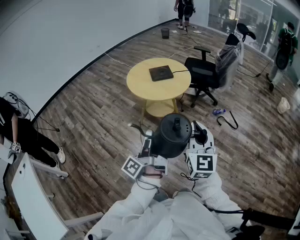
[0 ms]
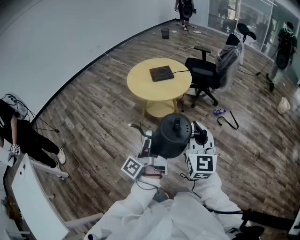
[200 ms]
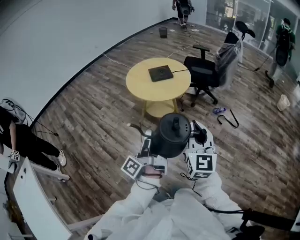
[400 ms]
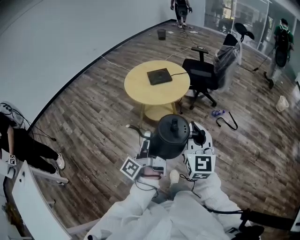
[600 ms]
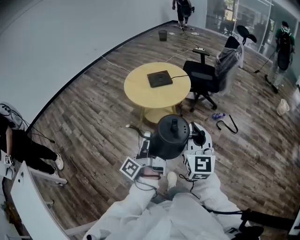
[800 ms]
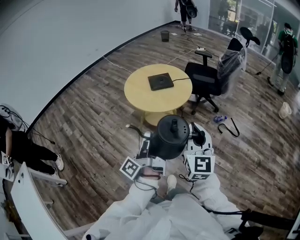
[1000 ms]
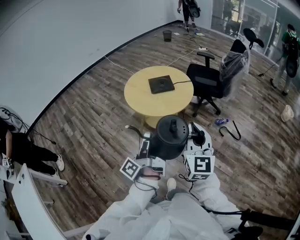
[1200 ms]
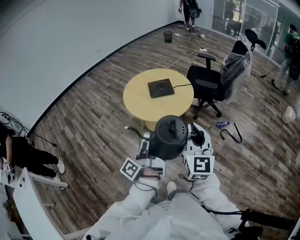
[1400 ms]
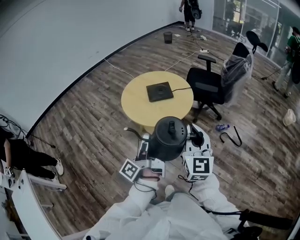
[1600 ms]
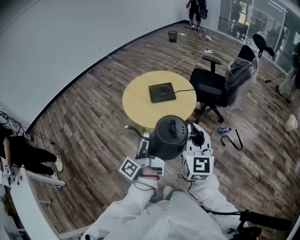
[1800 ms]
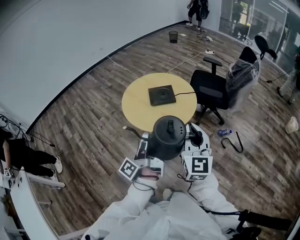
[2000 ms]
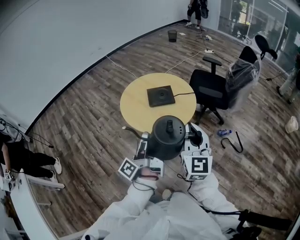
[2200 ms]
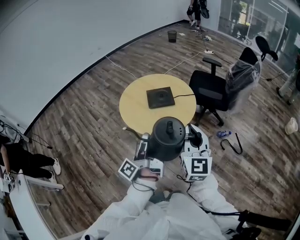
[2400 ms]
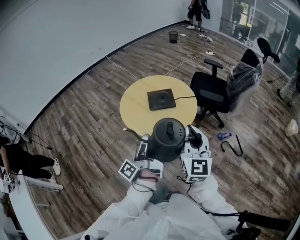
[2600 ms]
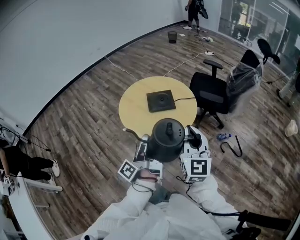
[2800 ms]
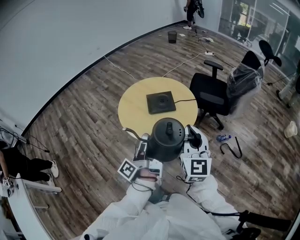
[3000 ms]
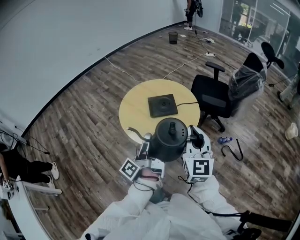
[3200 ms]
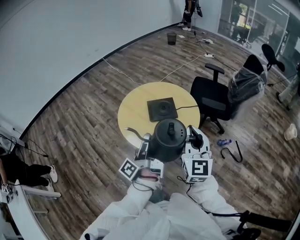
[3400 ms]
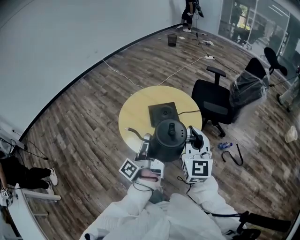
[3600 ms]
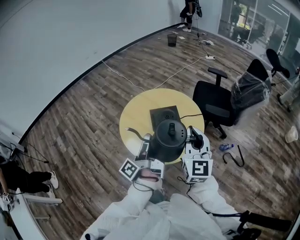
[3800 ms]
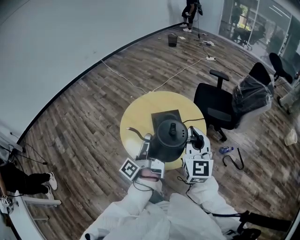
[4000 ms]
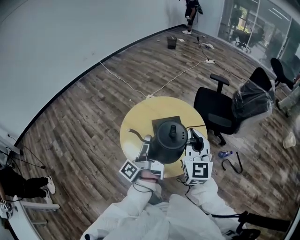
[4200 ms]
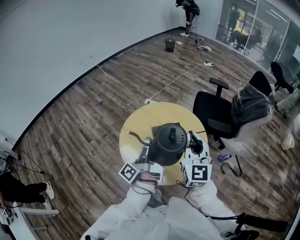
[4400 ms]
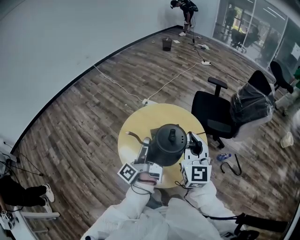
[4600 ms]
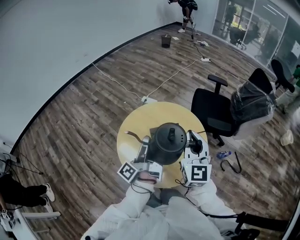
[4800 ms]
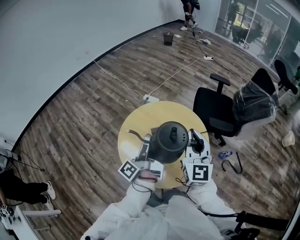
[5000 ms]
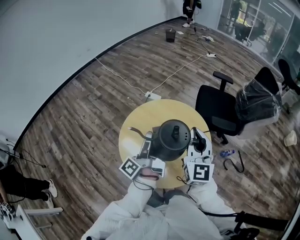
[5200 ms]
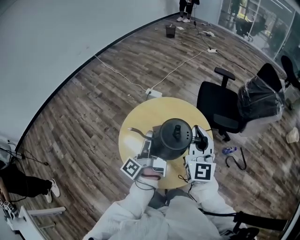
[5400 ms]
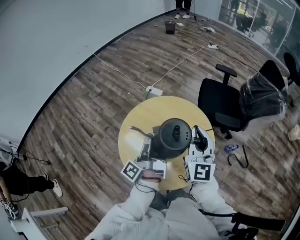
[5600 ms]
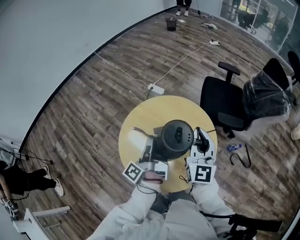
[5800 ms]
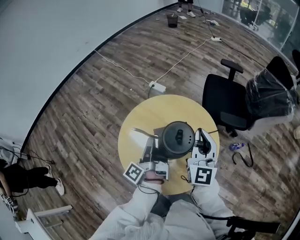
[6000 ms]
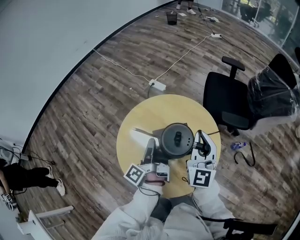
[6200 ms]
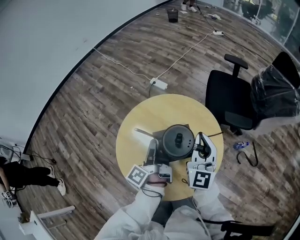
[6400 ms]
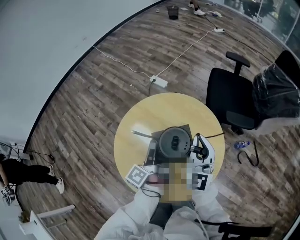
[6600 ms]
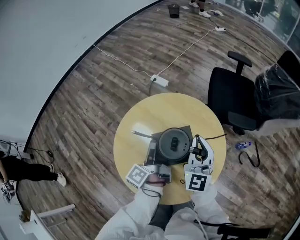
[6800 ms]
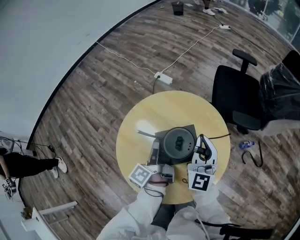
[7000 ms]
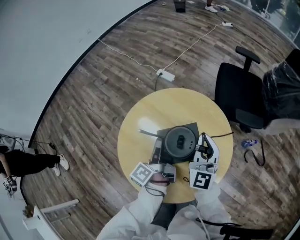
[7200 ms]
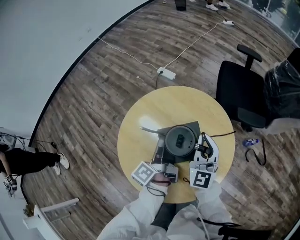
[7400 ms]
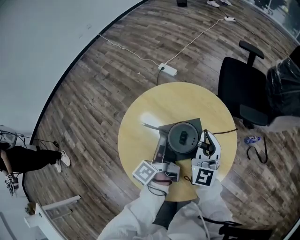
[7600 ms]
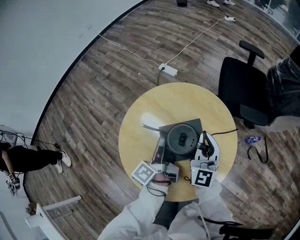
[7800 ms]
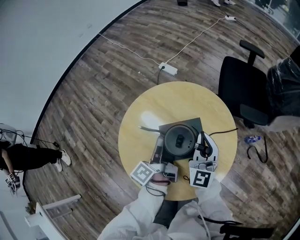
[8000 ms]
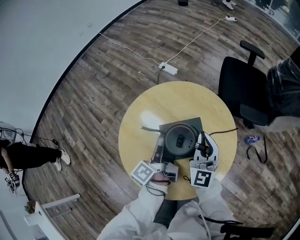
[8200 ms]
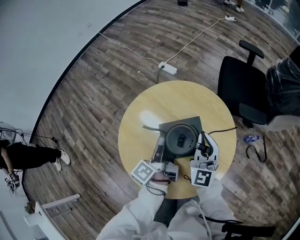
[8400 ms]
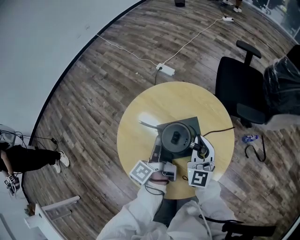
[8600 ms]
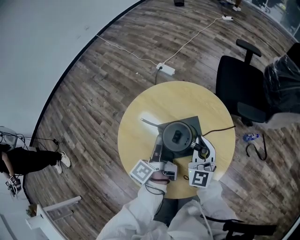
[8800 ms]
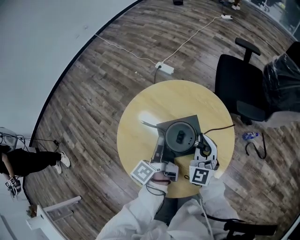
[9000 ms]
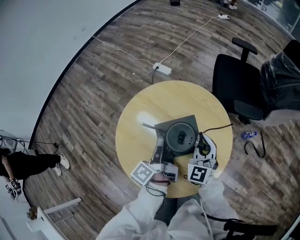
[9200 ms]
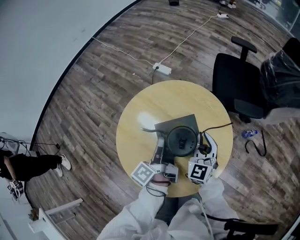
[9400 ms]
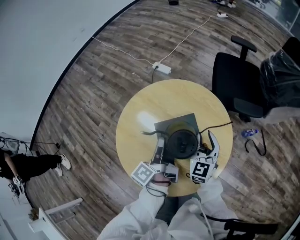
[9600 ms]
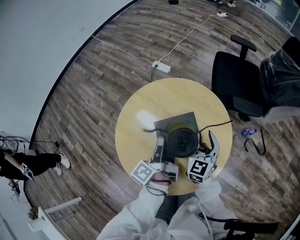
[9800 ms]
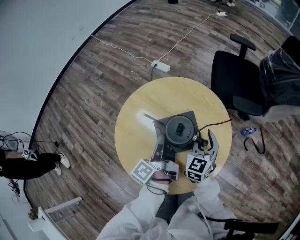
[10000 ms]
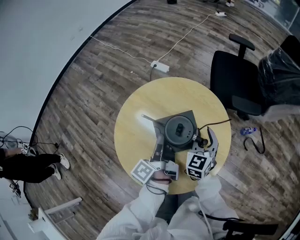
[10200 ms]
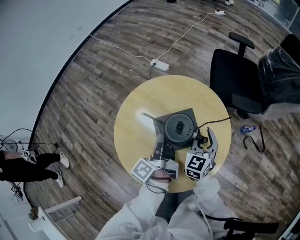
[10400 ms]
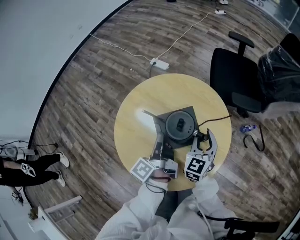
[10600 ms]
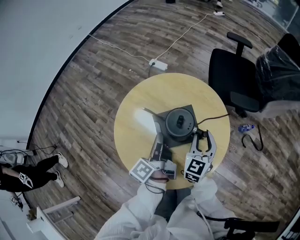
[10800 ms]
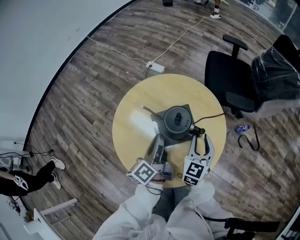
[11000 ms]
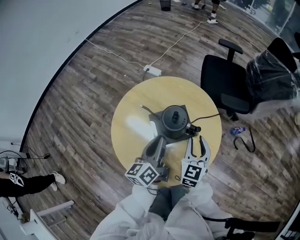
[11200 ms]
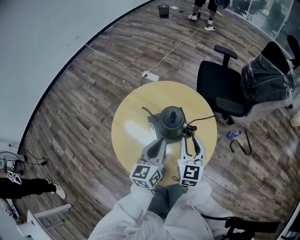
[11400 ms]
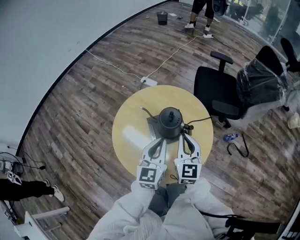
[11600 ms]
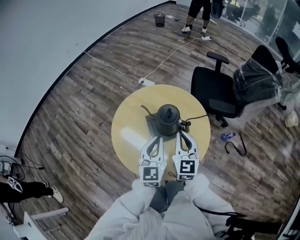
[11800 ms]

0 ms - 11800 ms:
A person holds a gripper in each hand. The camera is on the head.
0 ms - 1400 ms: The right gripper moves roughly 20 cm.
1400 ms - 3000 ms: The right gripper moves roughly 20 cm.
3000 ms - 4400 ms: The right gripper ends up some 25 cm from where it was.
4400 ms - 6000 ms: The right gripper shifts by some 15 cm.
6000 ms - 7400 ms: The right gripper travels downward by approximately 15 cm.
7400 ms - 8800 ms: The right gripper shifts by roughly 5 cm.
8800 ms - 10400 ms: The right gripper ends up about 5 cm from where it was, swivels some 30 degrees, and opens up.
10400 ms - 11800 ms: The right gripper goes about 15 cm upward, swivels some 20 degrees, and closes up.

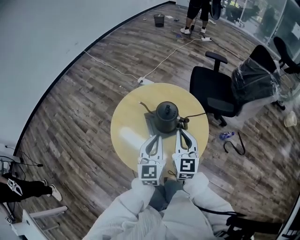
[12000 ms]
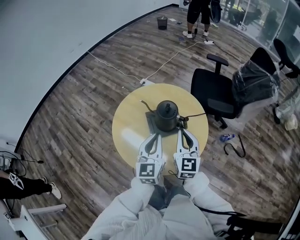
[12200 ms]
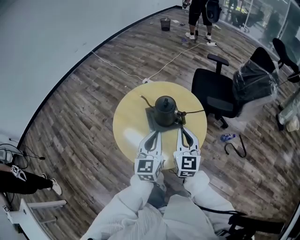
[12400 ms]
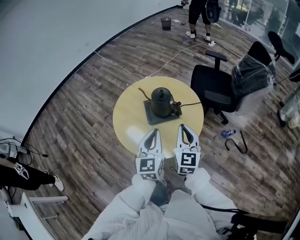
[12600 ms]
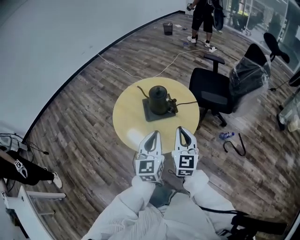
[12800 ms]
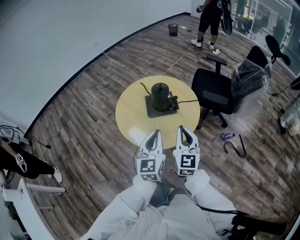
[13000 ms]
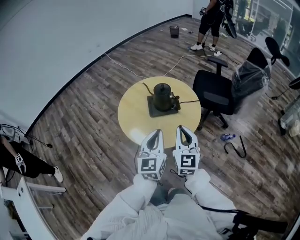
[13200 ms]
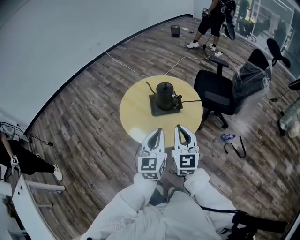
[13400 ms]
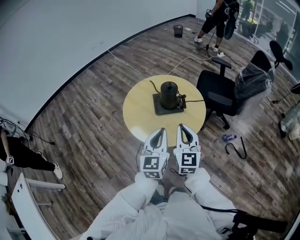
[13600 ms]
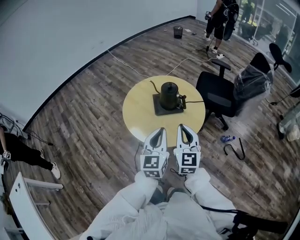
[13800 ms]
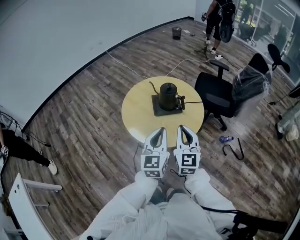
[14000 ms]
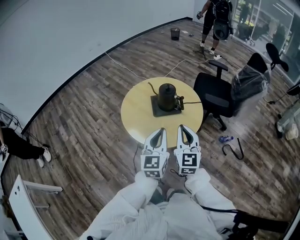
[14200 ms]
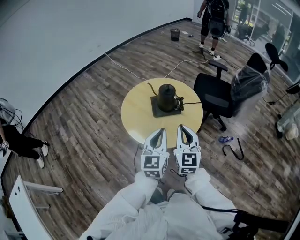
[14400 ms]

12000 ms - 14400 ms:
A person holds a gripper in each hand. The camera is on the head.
12000 ms - 13200 ms: The right gripper shifts by roughly 20 cm.

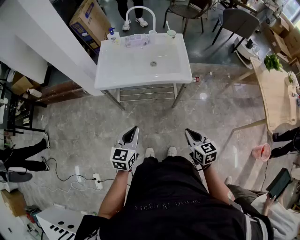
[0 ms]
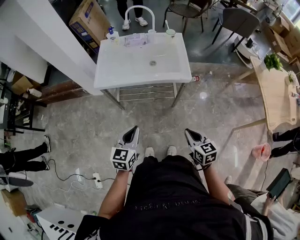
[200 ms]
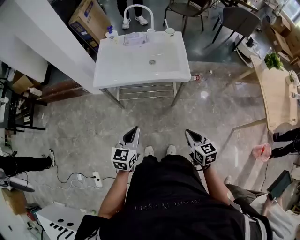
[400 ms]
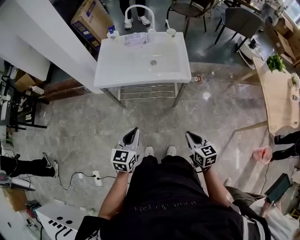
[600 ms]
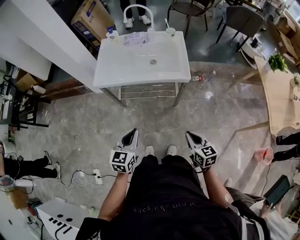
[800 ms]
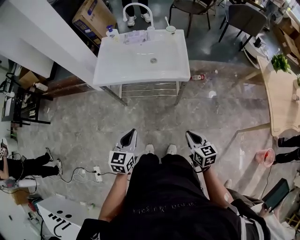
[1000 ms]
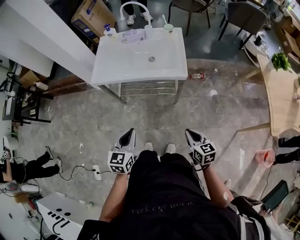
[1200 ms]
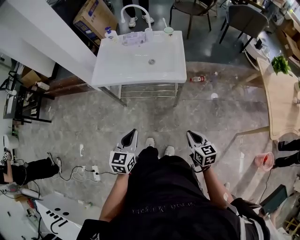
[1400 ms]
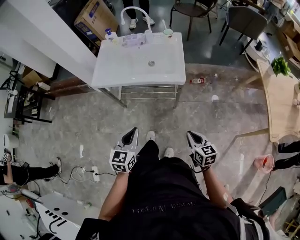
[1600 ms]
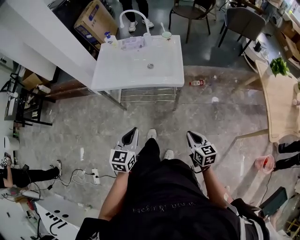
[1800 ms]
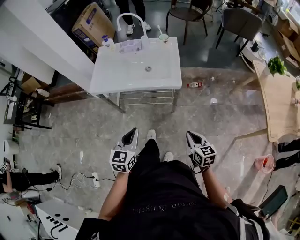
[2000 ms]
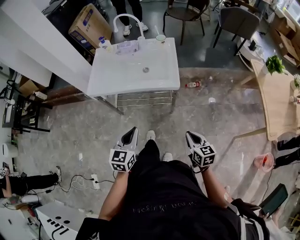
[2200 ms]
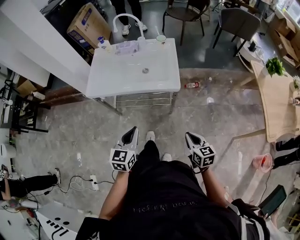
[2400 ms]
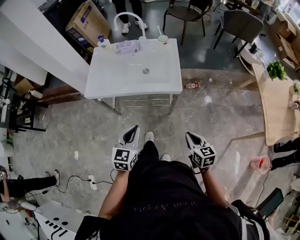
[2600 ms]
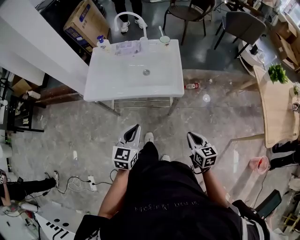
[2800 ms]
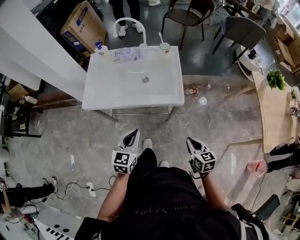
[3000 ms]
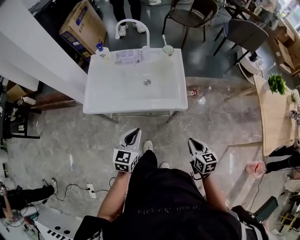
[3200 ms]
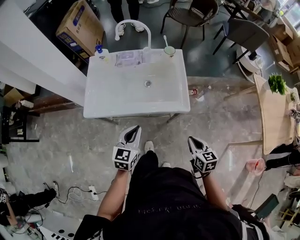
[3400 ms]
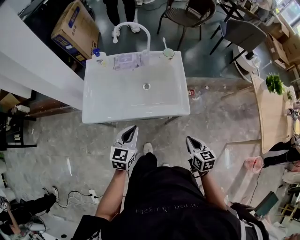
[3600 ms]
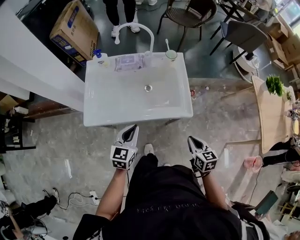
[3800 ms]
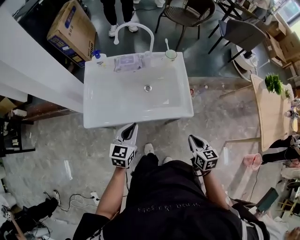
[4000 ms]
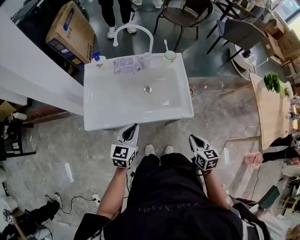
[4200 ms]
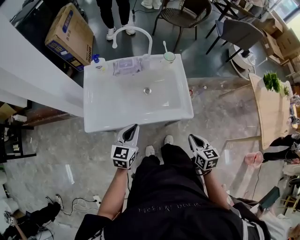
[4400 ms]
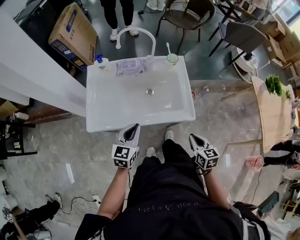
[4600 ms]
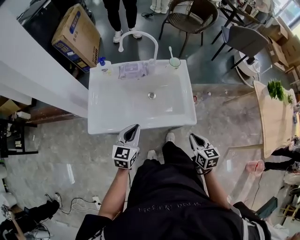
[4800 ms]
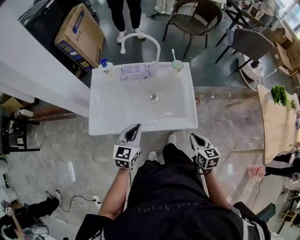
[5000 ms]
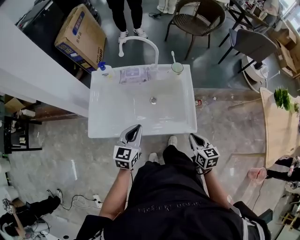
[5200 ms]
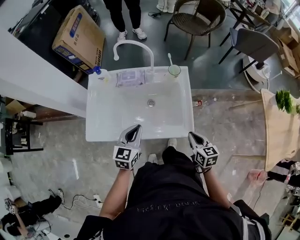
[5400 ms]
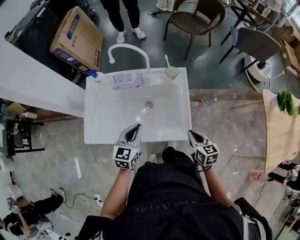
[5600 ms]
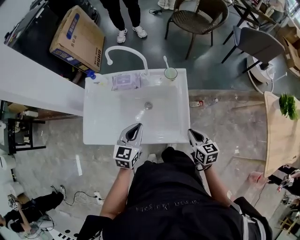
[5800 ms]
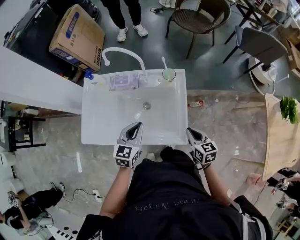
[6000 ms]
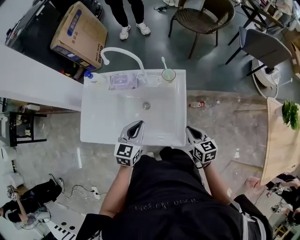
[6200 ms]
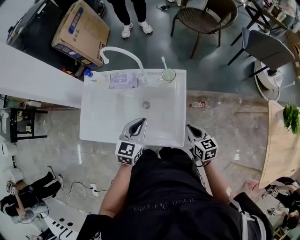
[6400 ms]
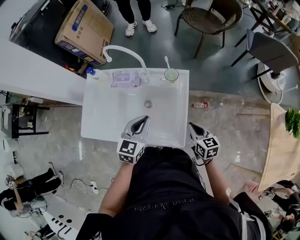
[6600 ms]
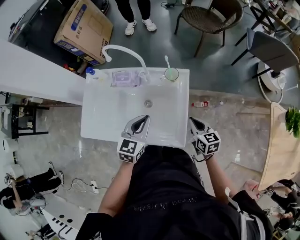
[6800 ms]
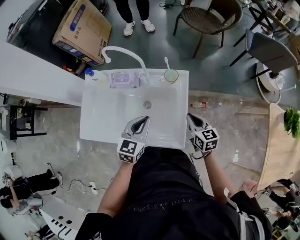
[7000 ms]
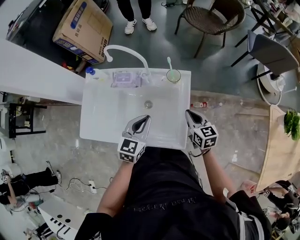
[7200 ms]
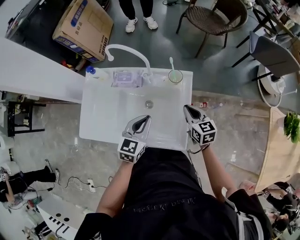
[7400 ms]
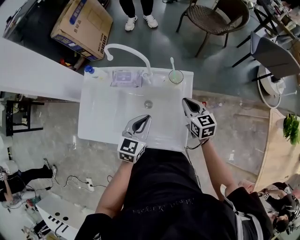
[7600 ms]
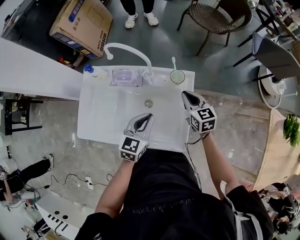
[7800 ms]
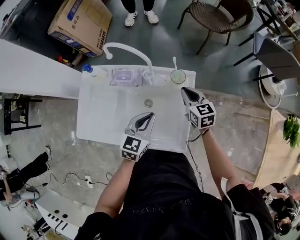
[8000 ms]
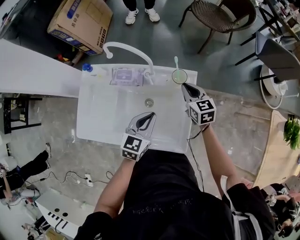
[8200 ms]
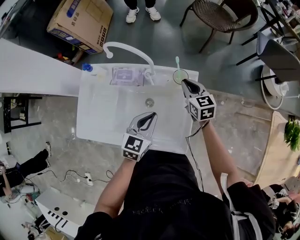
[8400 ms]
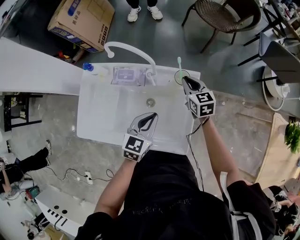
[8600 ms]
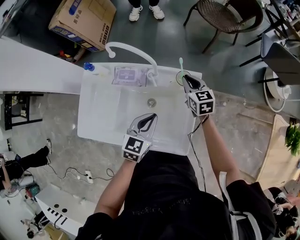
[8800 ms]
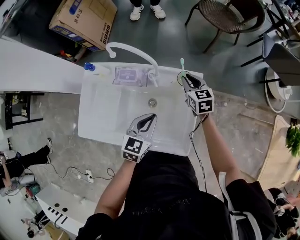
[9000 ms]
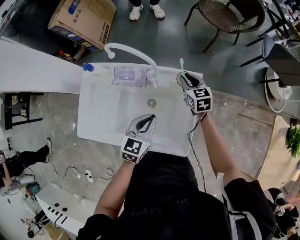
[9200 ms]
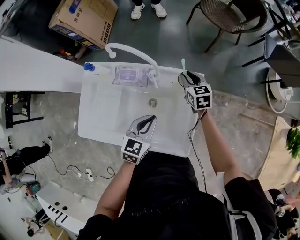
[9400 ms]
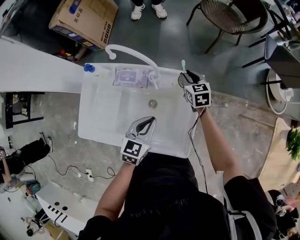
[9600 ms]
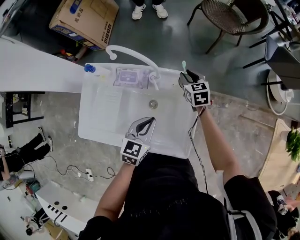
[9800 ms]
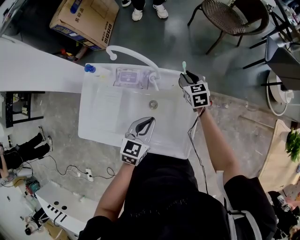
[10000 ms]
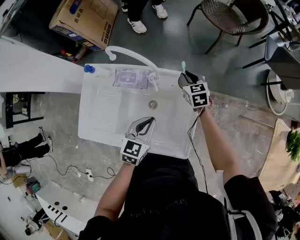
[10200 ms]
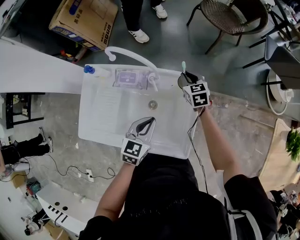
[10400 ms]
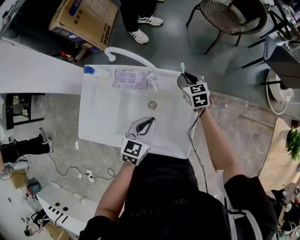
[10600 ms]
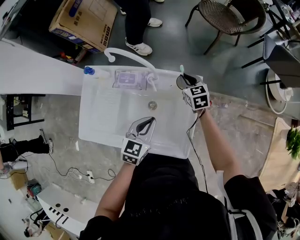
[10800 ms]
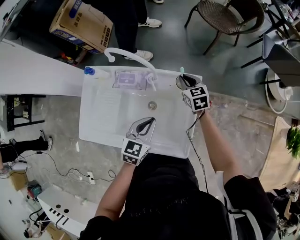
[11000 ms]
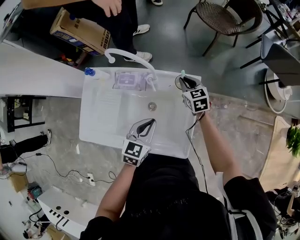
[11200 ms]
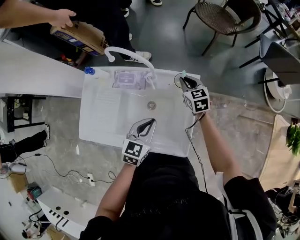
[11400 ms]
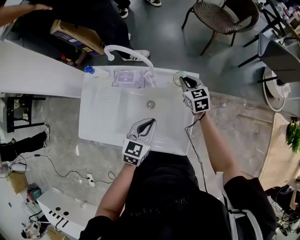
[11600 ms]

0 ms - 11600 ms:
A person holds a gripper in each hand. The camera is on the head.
0 ms - 1400 ms: The two grippers go some 10 cm to the right.
1400 ms - 2800 ms: The grippers both shift forward by some 10 cm.
2800 ms - 4400 ms: Both grippers move forward and to the left, some 20 cm.
4400 ms - 5800 ms: The left gripper is displaced forward and to the right by approximately 15 cm; the right gripper moves forward, about 20 cm.
5800 ms - 7200 ms: The right gripper goes roughly 15 cm forward; the left gripper heads to the right and forward, covering roughly 10 cm.
7200 ms - 8800 ms: The left gripper shifts by some 5 cm; the right gripper is displaced forward by roughly 20 cm.
8800 ms - 10200 ms: The right gripper shifts by some 5 cm.
10200 ms - 11600 ms: The right gripper ends up about 5 cm from where it was.
